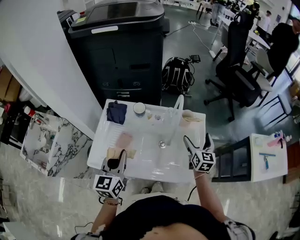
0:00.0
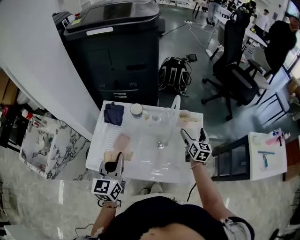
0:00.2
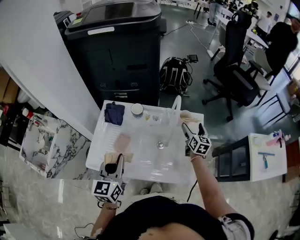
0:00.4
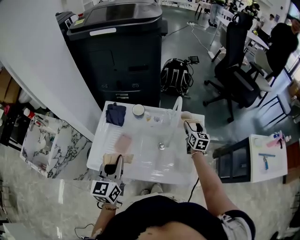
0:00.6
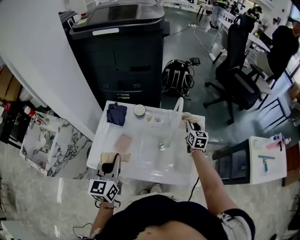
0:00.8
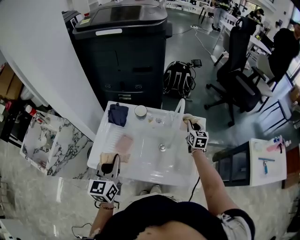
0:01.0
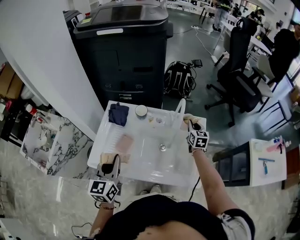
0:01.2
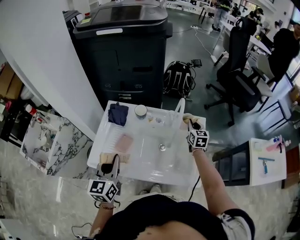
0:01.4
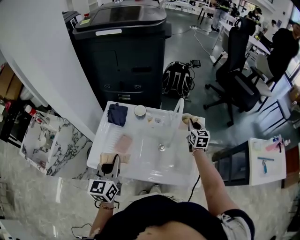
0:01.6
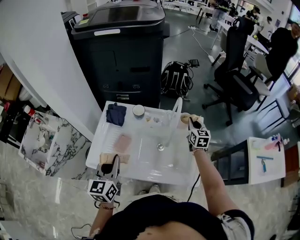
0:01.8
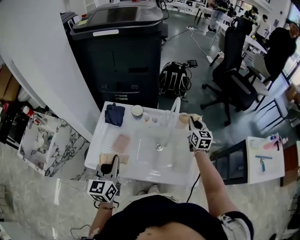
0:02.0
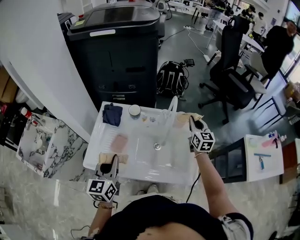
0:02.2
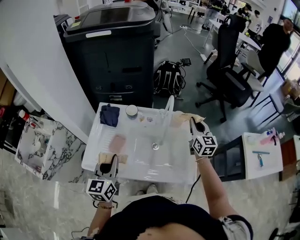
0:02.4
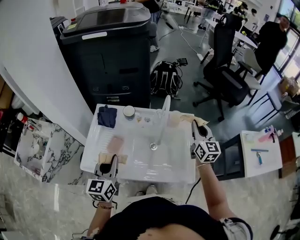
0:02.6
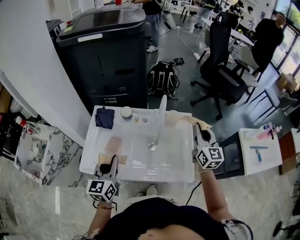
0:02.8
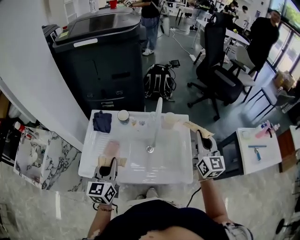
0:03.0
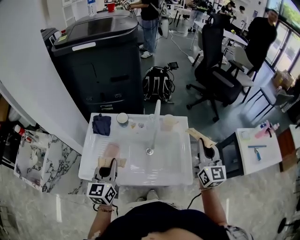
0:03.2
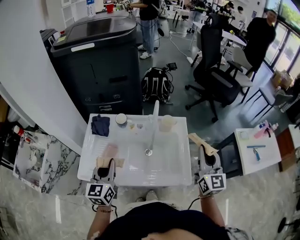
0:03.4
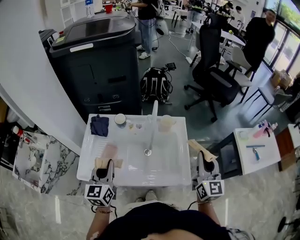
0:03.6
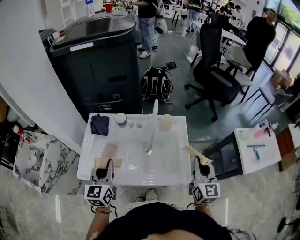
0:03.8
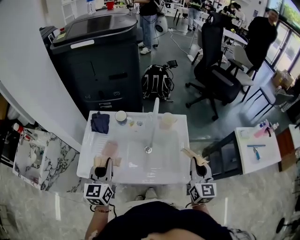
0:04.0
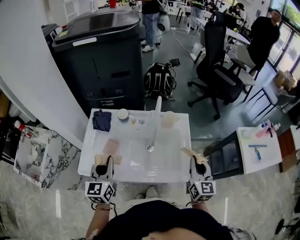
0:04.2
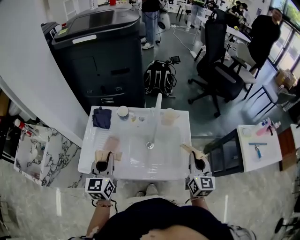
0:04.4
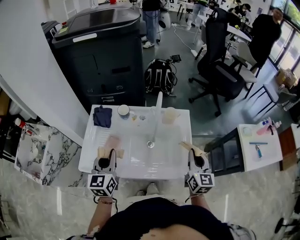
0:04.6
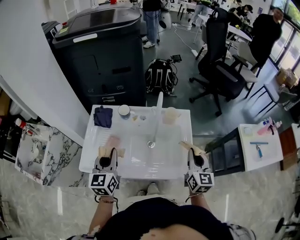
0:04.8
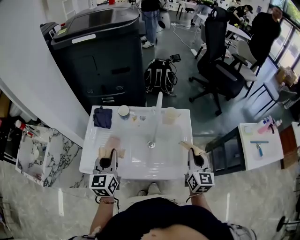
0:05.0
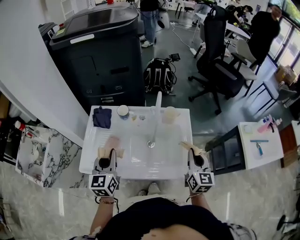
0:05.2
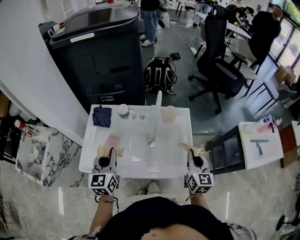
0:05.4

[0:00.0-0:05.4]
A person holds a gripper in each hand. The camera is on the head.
0:00.0 to 0:01.4: The right gripper heads forward, covering about 10 cm, and closes up.
0:01.4 to 0:02.8: The right gripper travels upward and backward by approximately 20 cm, and rotates roughly 20 degrees.
0:02.8 to 0:04.0: The right gripper is displaced backward by some 15 cm.
0:04.0 to 0:05.4: There are only small adjustments of the grippers.

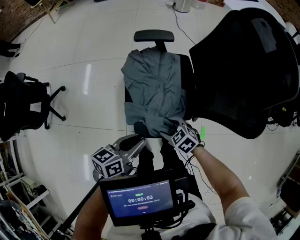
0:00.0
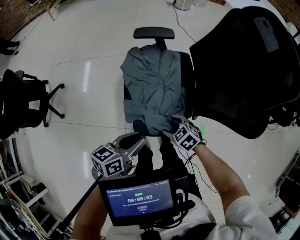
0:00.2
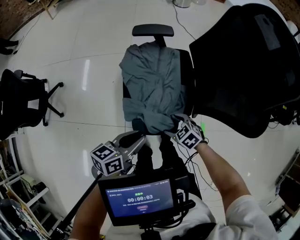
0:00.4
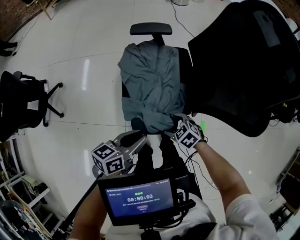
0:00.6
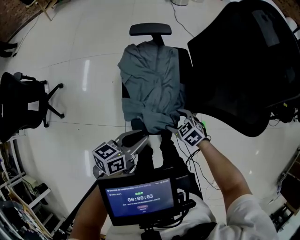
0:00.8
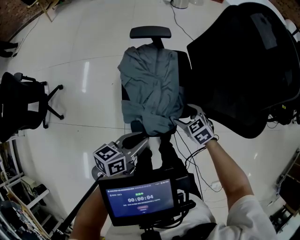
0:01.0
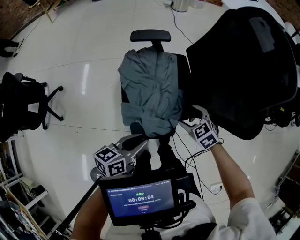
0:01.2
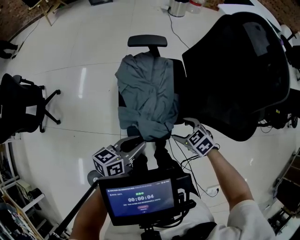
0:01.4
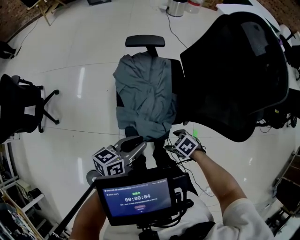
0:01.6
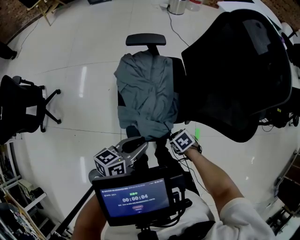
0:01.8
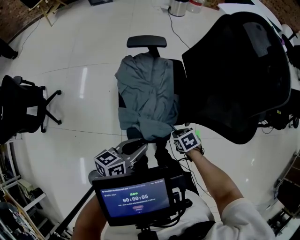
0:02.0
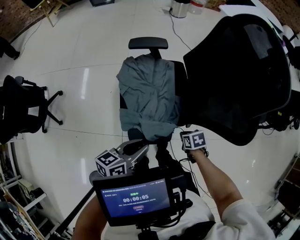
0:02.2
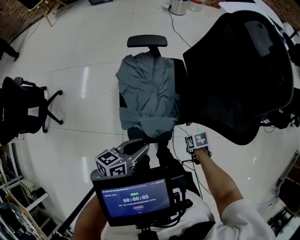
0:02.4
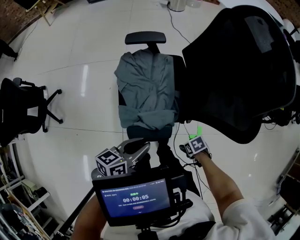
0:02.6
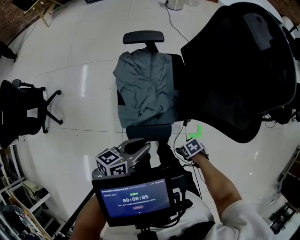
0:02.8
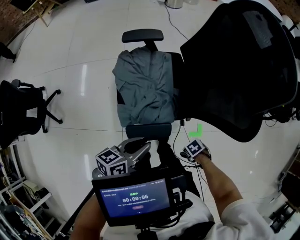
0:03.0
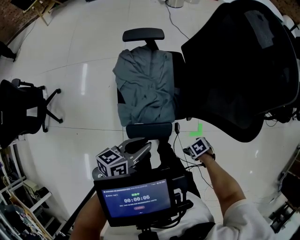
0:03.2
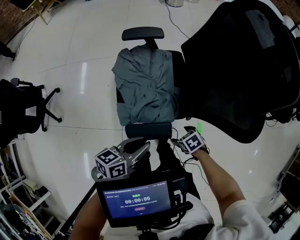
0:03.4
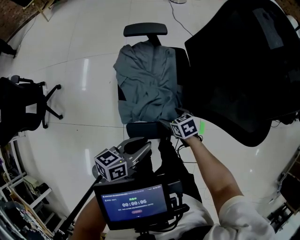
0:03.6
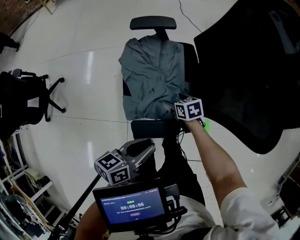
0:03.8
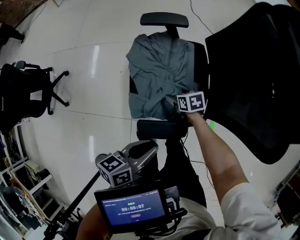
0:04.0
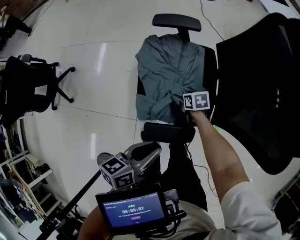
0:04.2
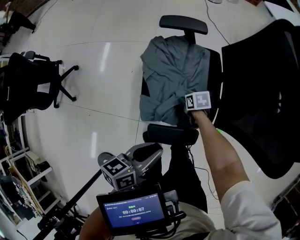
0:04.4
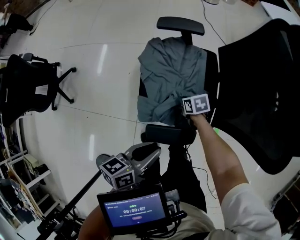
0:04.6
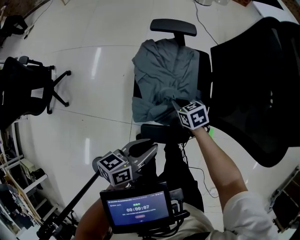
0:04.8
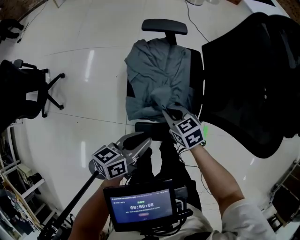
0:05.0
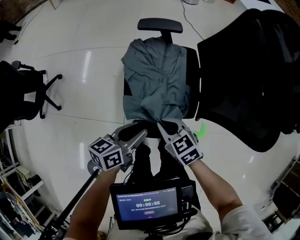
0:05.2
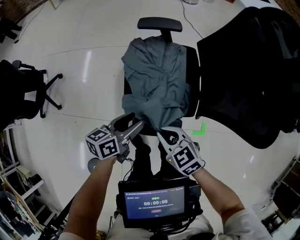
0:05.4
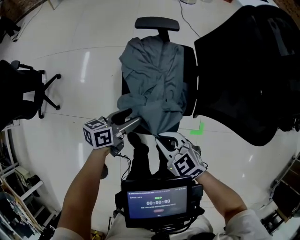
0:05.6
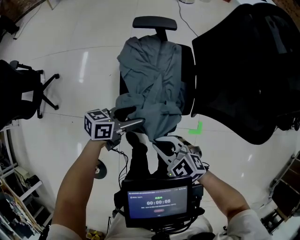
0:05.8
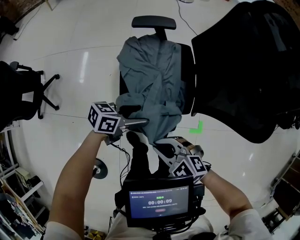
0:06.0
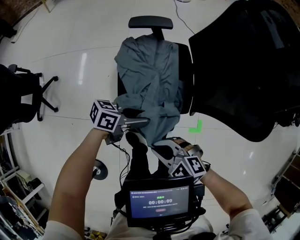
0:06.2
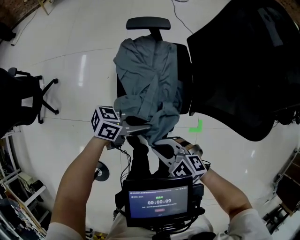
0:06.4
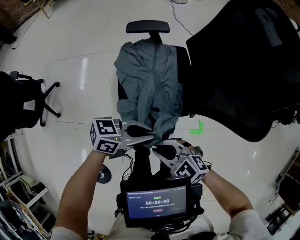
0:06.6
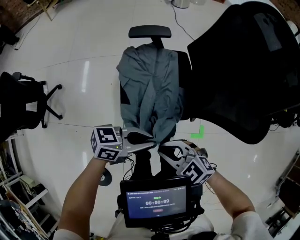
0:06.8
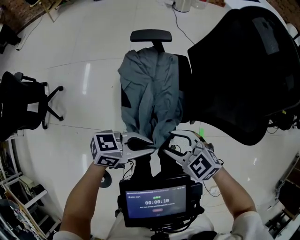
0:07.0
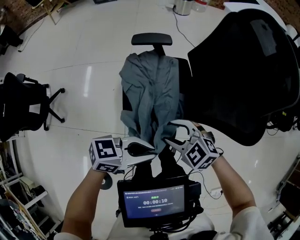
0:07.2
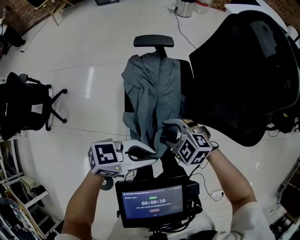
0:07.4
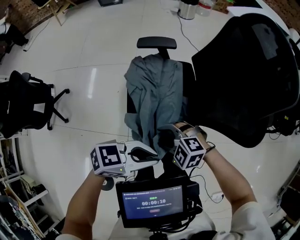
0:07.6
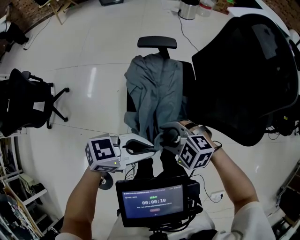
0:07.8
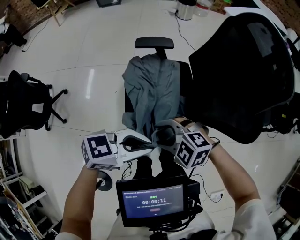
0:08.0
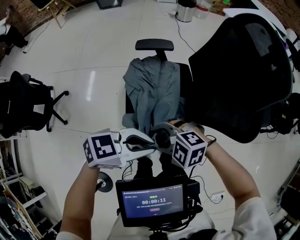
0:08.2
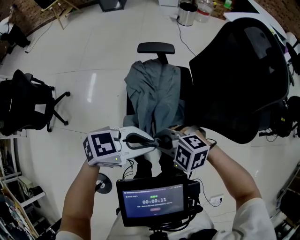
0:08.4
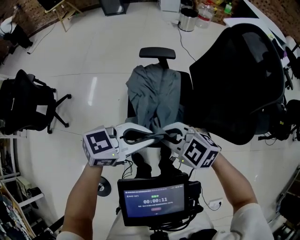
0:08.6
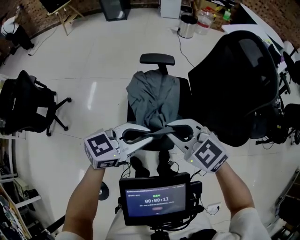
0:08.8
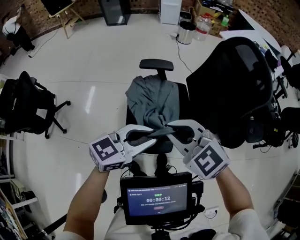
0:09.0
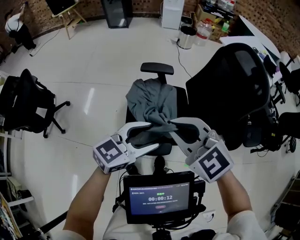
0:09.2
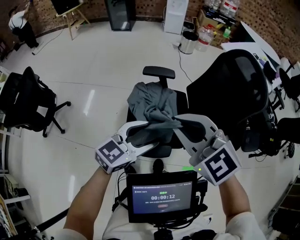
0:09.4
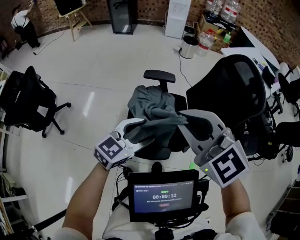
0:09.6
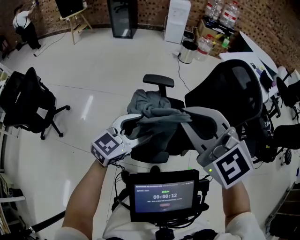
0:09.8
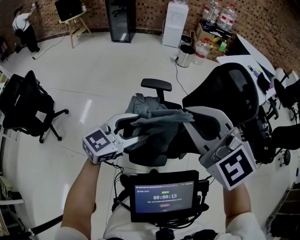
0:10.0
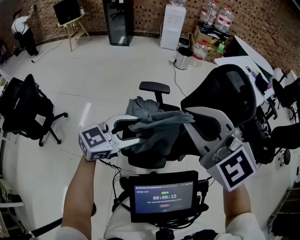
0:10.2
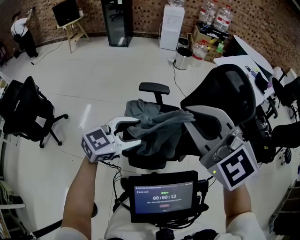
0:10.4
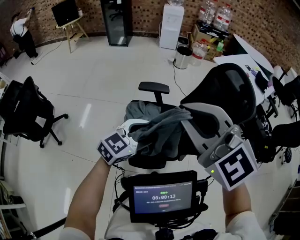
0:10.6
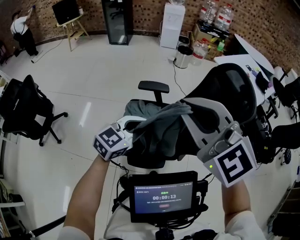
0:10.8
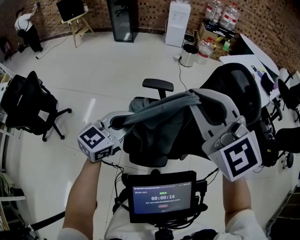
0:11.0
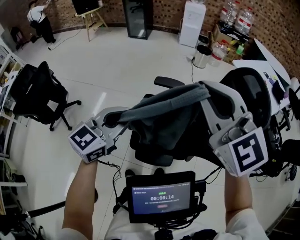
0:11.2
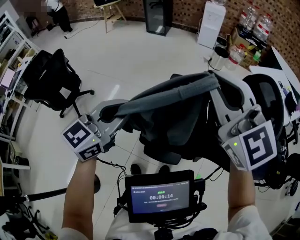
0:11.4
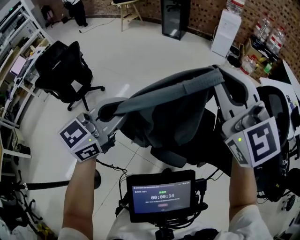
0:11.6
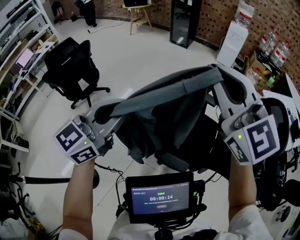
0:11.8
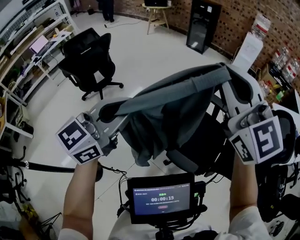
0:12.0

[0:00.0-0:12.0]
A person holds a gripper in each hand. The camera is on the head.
0:00.0 to 0:01.6: The right gripper ends up approximately 10 cm from where it was, and turns by approximately 20 degrees.
0:01.6 to 0:03.0: The right gripper ends up about 15 cm from where it was, swivels some 30 degrees, and closes, then opens again.
0:03.0 to 0:04.4: The left gripper ends up about 5 cm from where it was; the right gripper ends up about 35 cm from where it was, turns by roughly 30 degrees, and closes.
0:04.4 to 0:06.0: The right gripper shifts some 30 cm upward, and twists some 60 degrees counterclockwise, seen from behind. The left gripper shifts by some 5 cm, swivels roughly 30 degrees, and opens.
0:06.0 to 0:07.6: The left gripper travels upward by roughly 15 cm, rotates approximately 30 degrees, and closes up, while the right gripper opens.
0:07.6 to 0:09.0: The left gripper changes place by approximately 10 cm, and swivels approximately 30 degrees; the right gripper is displaced upward by roughly 20 cm, changes its angle by roughly 30 degrees, and closes.
0:09.0 to 0:10.4: The left gripper ends up some 5 cm from where it was, and opens its fingers; the right gripper shifts roughly 20 cm upward, and turns by some 20 degrees.
0:10.4 to 0:12.0: The left gripper ends up approximately 30 cm from where it was, changes its angle by about 50 degrees, and closes up; the right gripper shifts by about 20 cm, and turns by approximately 30 degrees.

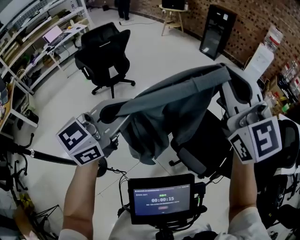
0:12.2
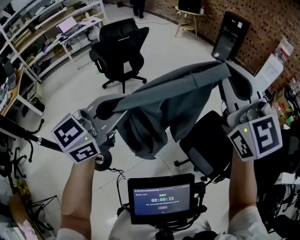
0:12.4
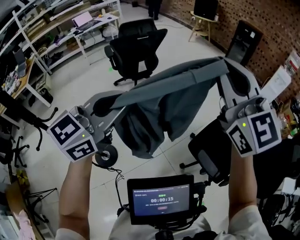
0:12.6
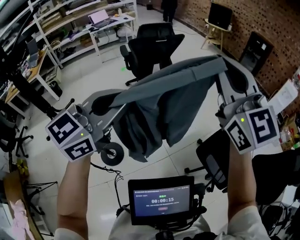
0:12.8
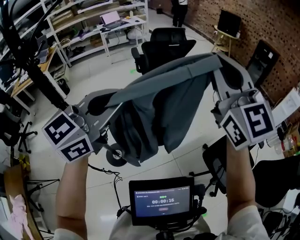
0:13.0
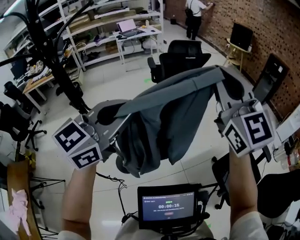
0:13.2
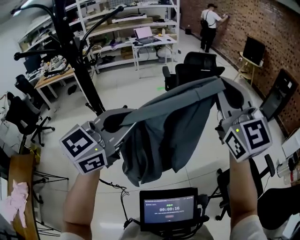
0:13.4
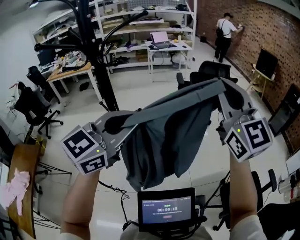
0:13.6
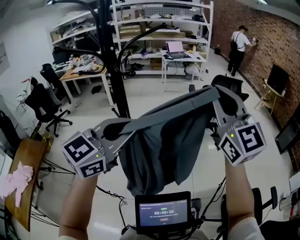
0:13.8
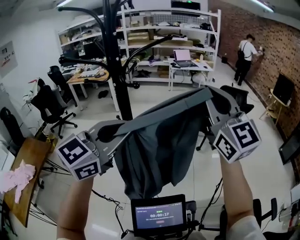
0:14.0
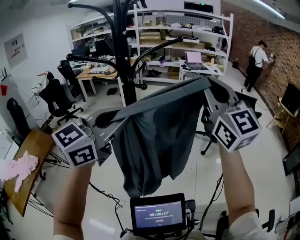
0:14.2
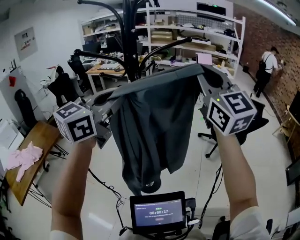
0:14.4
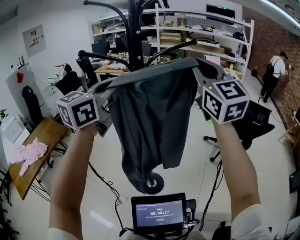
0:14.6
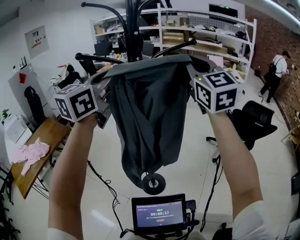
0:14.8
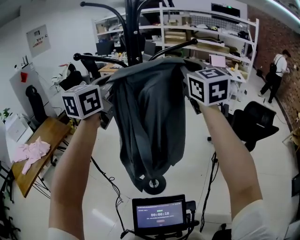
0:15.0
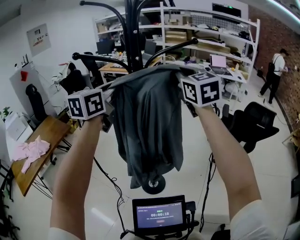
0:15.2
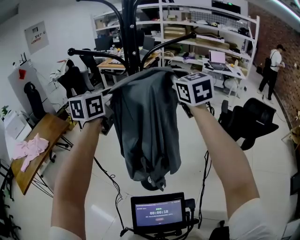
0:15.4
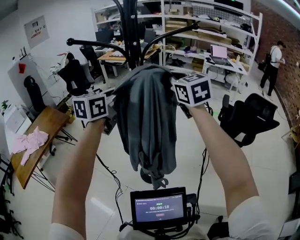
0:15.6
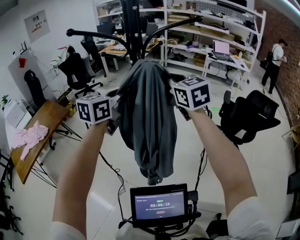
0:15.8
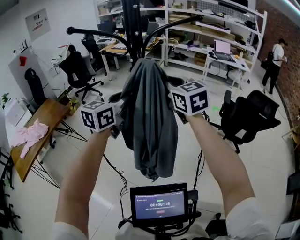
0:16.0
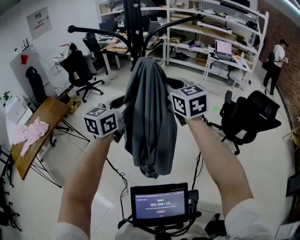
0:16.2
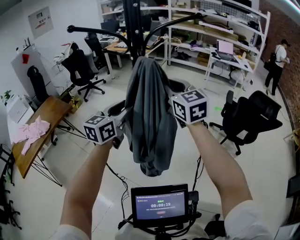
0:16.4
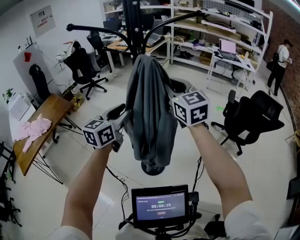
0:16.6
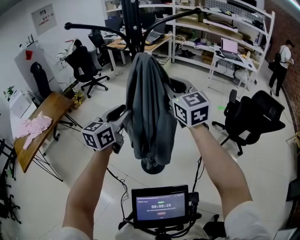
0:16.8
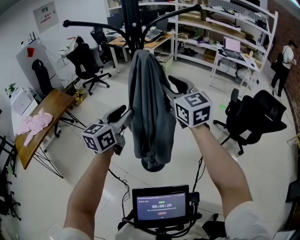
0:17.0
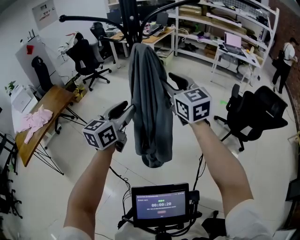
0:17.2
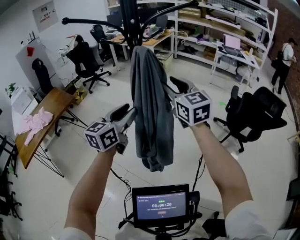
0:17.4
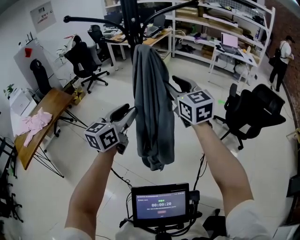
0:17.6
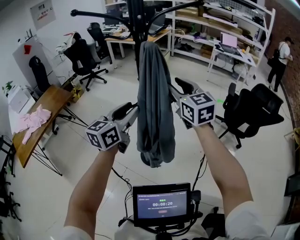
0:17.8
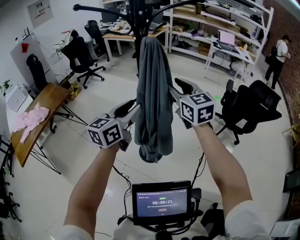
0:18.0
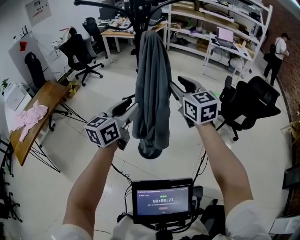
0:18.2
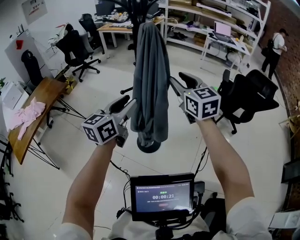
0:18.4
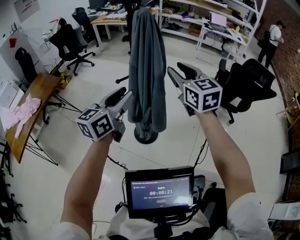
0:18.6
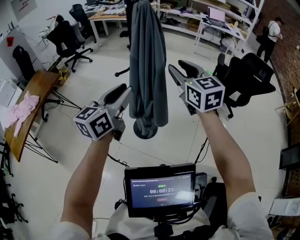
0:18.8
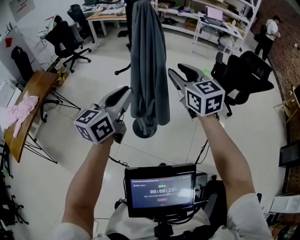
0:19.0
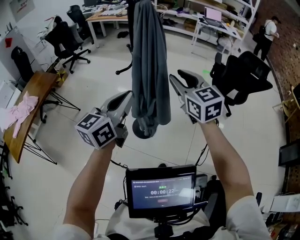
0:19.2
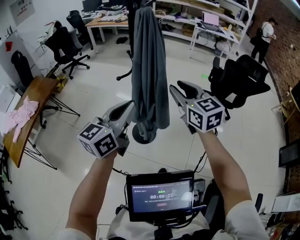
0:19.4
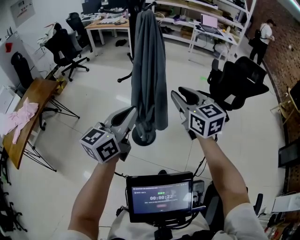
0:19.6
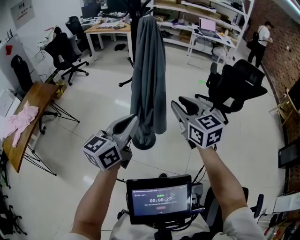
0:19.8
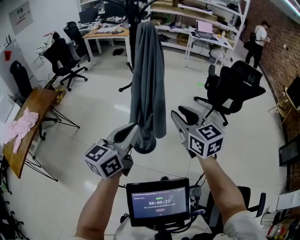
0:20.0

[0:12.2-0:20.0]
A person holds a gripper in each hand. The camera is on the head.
0:12.2 to 0:13.8: Both grippers are carried roughly 50 cm. The right gripper turns by about 40 degrees, while the left gripper rotates some 50 degrees.
0:13.8 to 0:15.4: The right gripper shifts by roughly 30 cm, and rotates roughly 30 degrees. The left gripper goes upward and returns, some 15 cm each way, and changes its angle by some 50 degrees.
0:15.4 to 0:16.8: The right gripper travels downward and backward by about 10 cm. Meanwhile the left gripper shifts some 15 cm downward and backward, and opens.
0:16.8 to 0:18.4: The left gripper moves backward, approximately 10 cm. Meanwhile the right gripper moves downward and backward, some 10 cm.
0:18.4 to 0:20.0: Both grippers travel together backward, about 15 cm. The left gripper closes.
